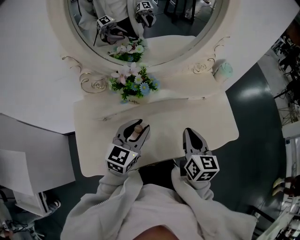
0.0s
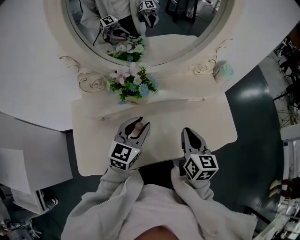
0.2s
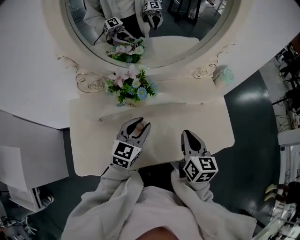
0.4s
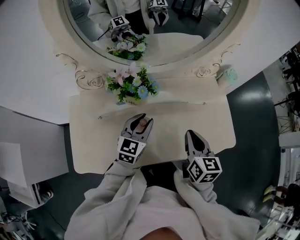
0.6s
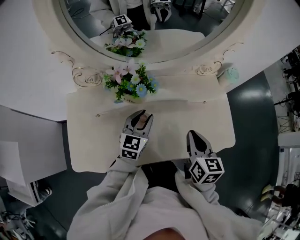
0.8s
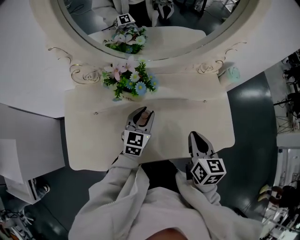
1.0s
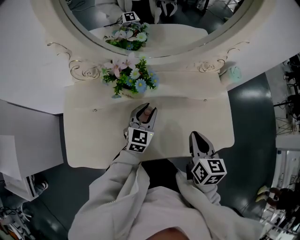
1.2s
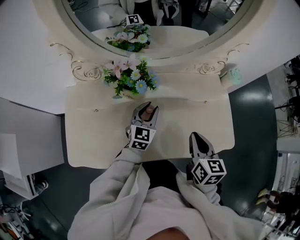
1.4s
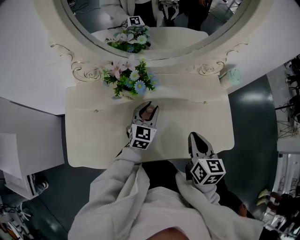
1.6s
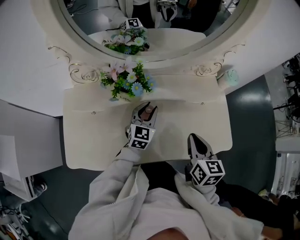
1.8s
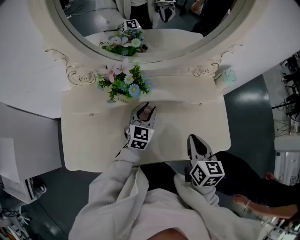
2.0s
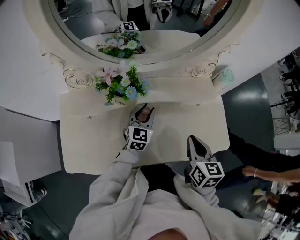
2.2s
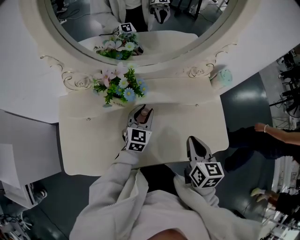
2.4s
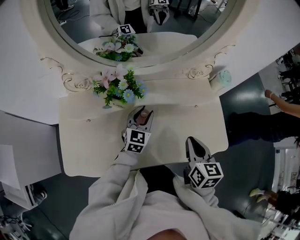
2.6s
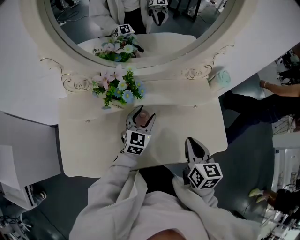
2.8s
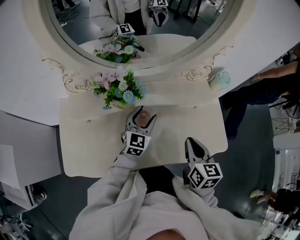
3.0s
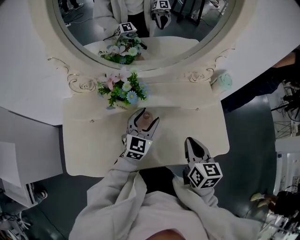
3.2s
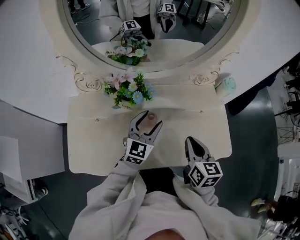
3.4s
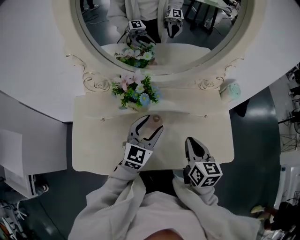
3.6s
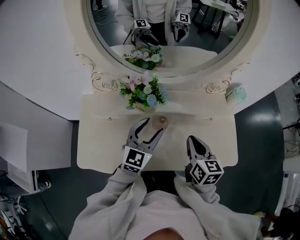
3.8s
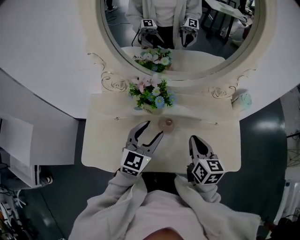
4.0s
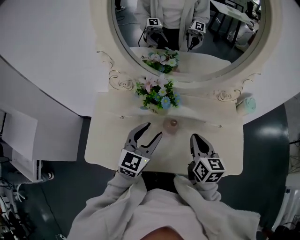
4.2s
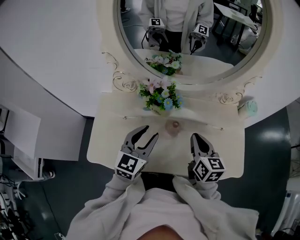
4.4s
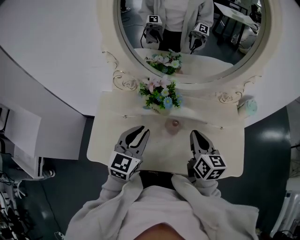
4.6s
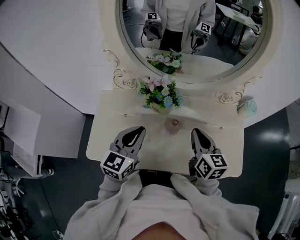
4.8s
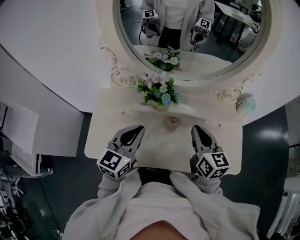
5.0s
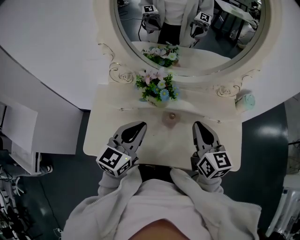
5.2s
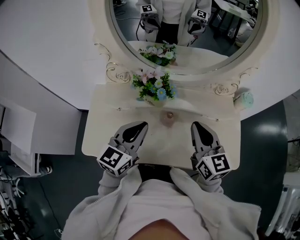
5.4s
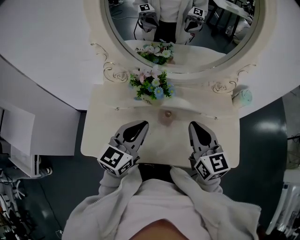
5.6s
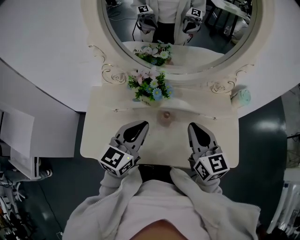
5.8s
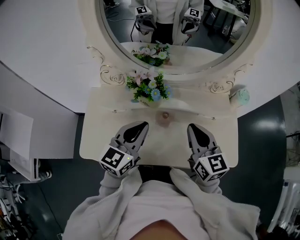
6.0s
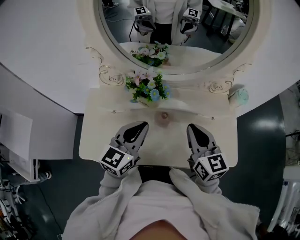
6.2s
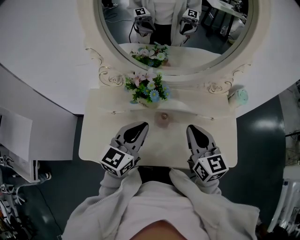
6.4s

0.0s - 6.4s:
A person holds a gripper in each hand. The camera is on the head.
0.0s - 1.6s: The left gripper is displaced downward, forward and to the right by some 15 cm; the right gripper is displaced to the right by some 5 cm.
1.6s - 3.2s: The left gripper opens up.
3.2s - 4.8s: The left gripper goes some 20 cm to the left, upward and backward, and closes up; the right gripper goes some 10 cm to the left and forward.
4.8s - 6.4s: The left gripper moves to the right, some 5 cm.

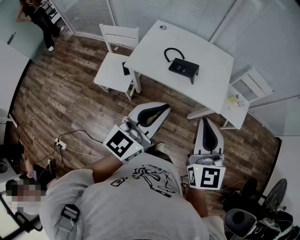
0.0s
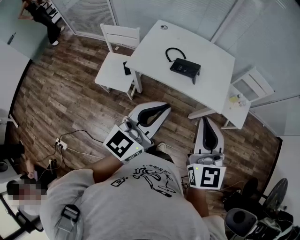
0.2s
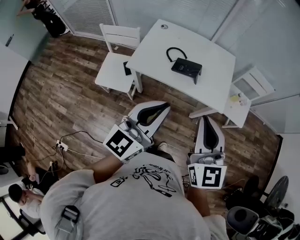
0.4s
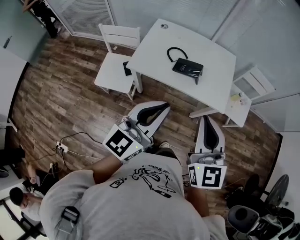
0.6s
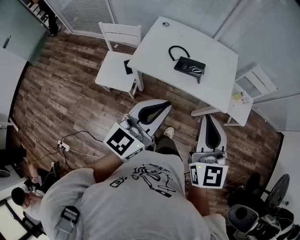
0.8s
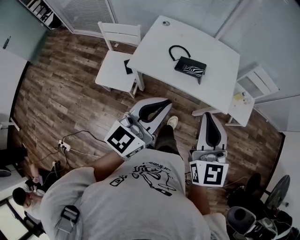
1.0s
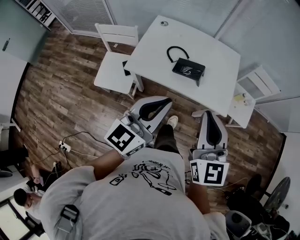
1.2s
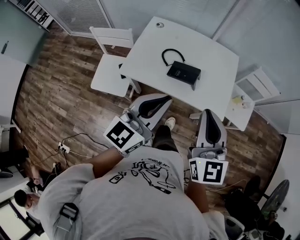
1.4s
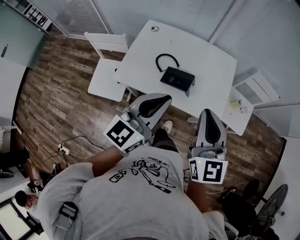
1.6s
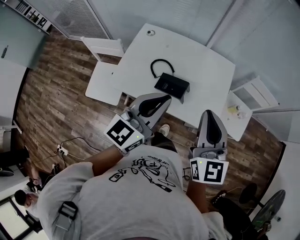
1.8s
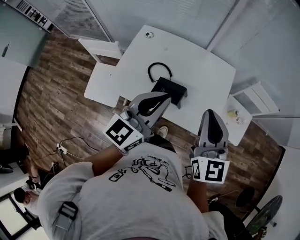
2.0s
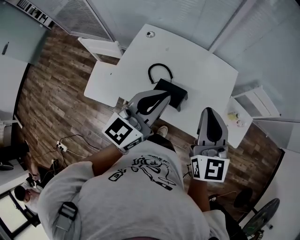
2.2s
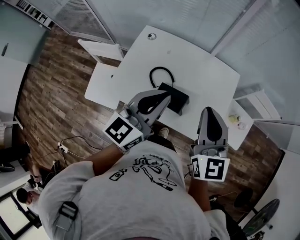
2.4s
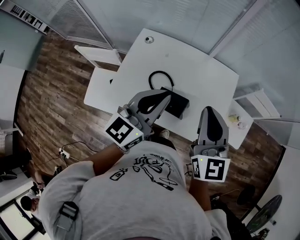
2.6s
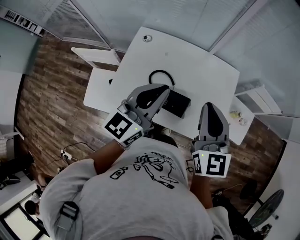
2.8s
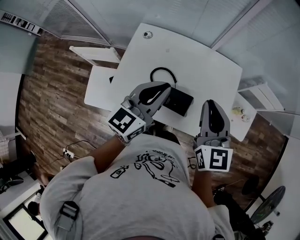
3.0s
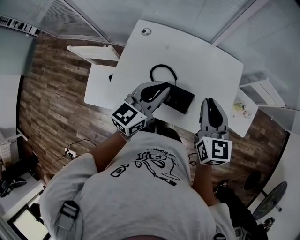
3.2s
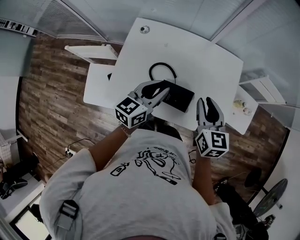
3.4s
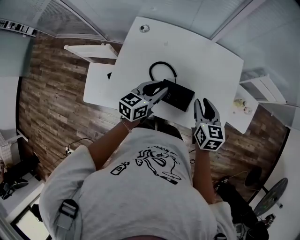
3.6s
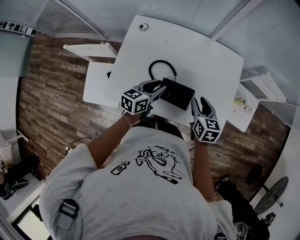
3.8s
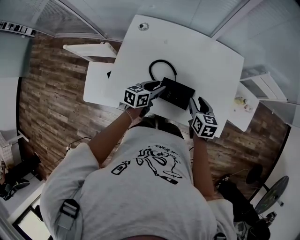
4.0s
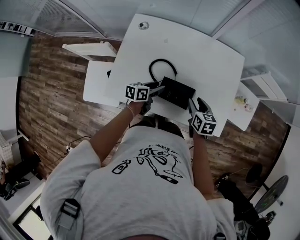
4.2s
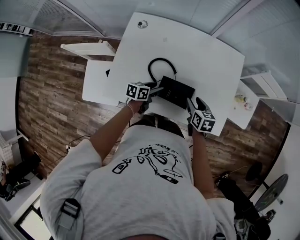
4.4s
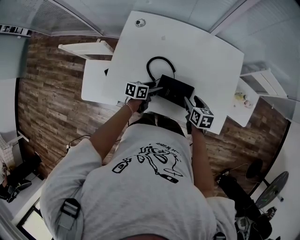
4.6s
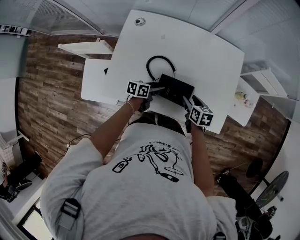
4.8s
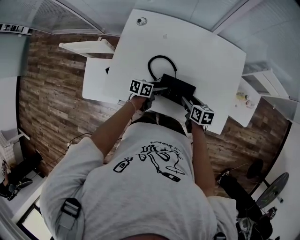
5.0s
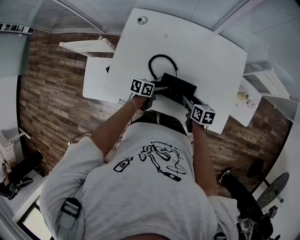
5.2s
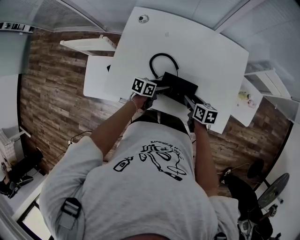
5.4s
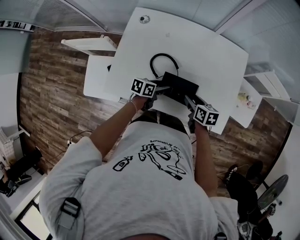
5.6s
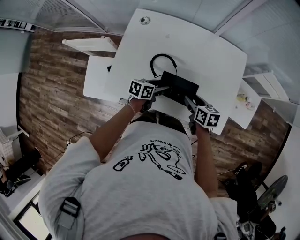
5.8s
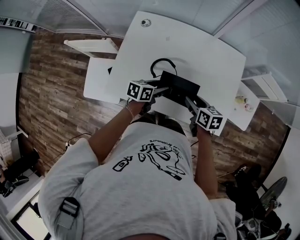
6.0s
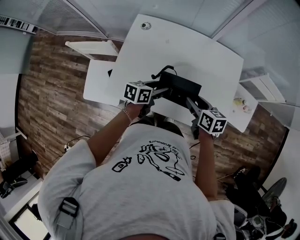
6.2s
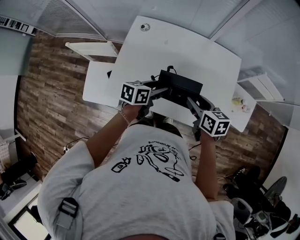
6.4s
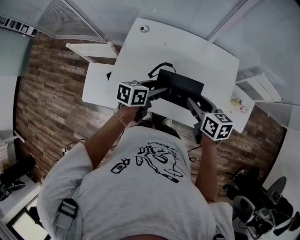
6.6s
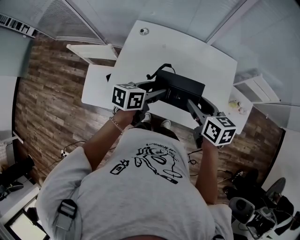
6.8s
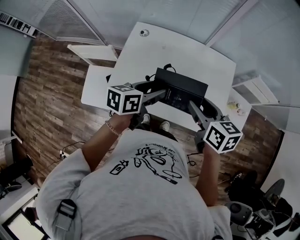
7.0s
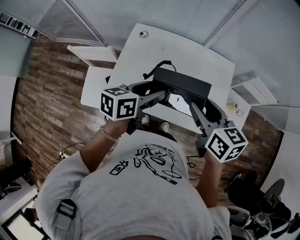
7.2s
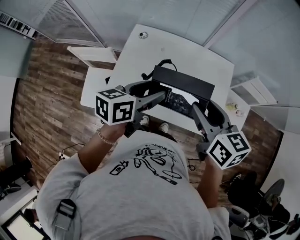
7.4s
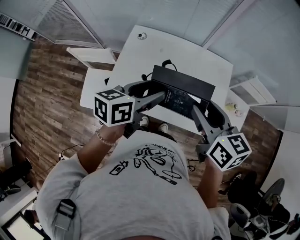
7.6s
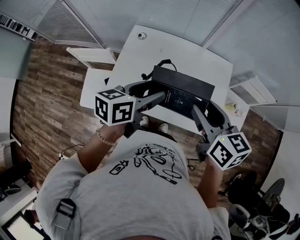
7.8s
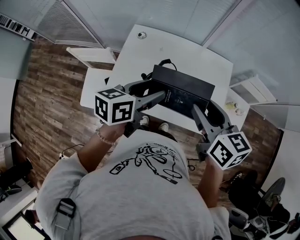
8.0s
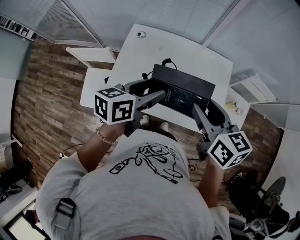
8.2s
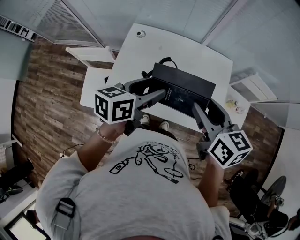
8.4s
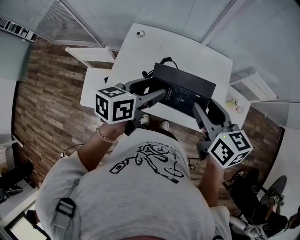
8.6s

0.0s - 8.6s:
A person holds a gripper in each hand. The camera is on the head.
0.0s - 1.4s: The grippers both shift forward by about 15 cm.
1.4s - 2.8s: Both grippers move forward, roughly 25 cm.
2.8s - 4.4s: Both grippers move downward, some 40 cm. The right gripper tips its fingers downward by about 40 degrees, and opens up, while the left gripper angles its fingers downward, by some 40 degrees, and opens.
4.4s - 5.8s: There are only small adjustments of the grippers.
5.8s - 7.2s: Both grippers move upward, about 30 cm. The right gripper swivels some 20 degrees.
7.2s - 8.6s: The grippers move only a little.

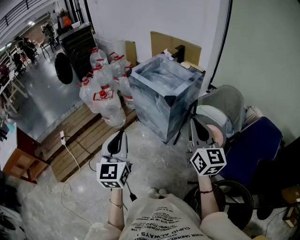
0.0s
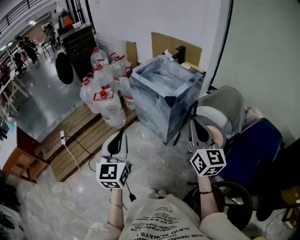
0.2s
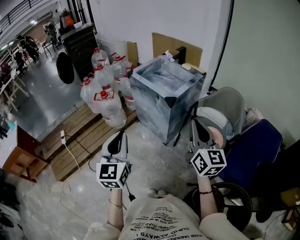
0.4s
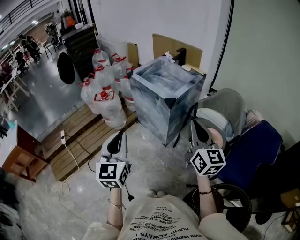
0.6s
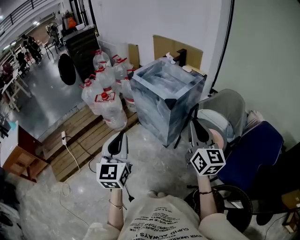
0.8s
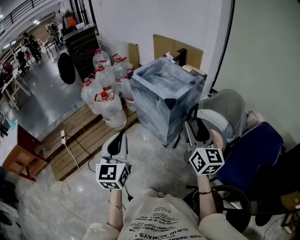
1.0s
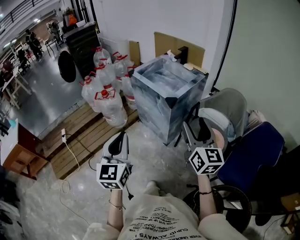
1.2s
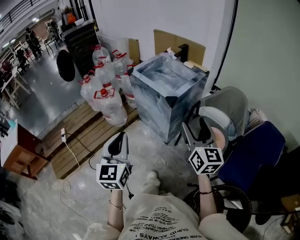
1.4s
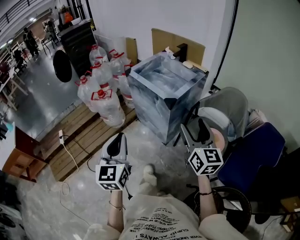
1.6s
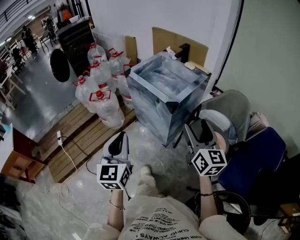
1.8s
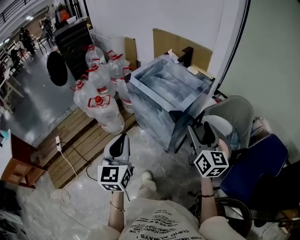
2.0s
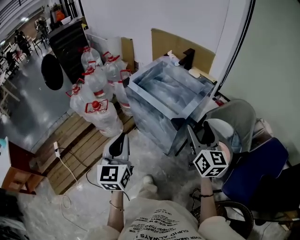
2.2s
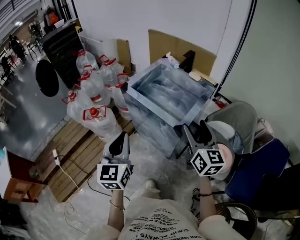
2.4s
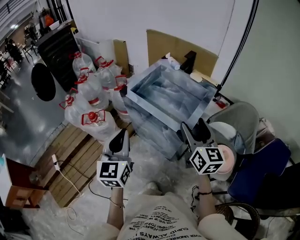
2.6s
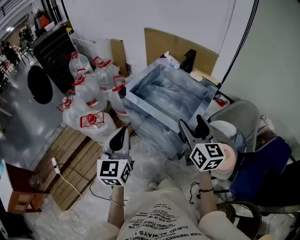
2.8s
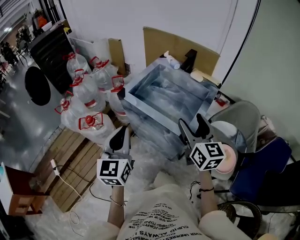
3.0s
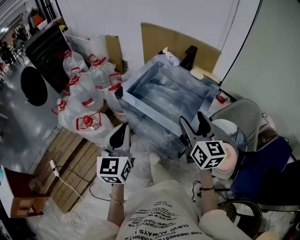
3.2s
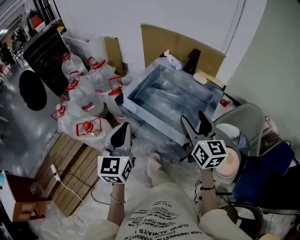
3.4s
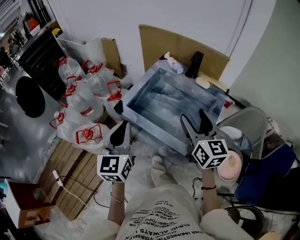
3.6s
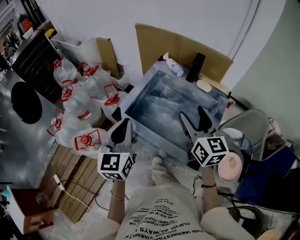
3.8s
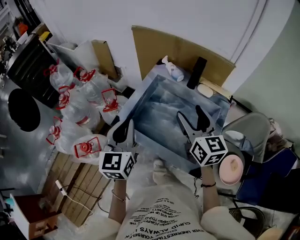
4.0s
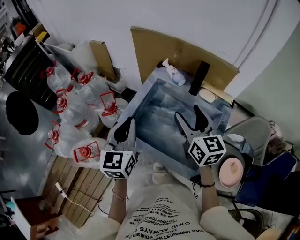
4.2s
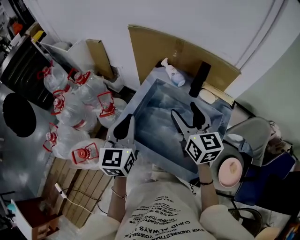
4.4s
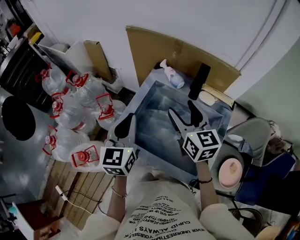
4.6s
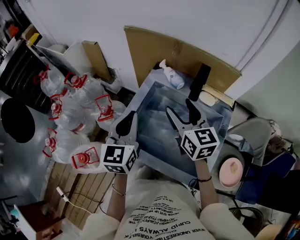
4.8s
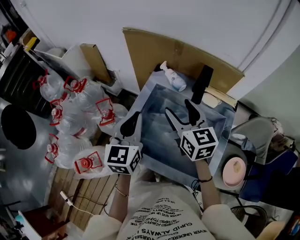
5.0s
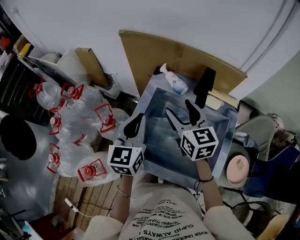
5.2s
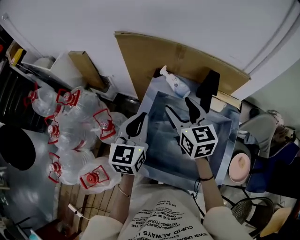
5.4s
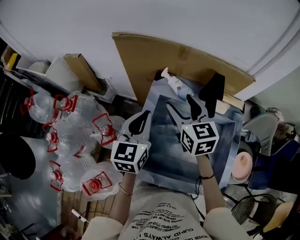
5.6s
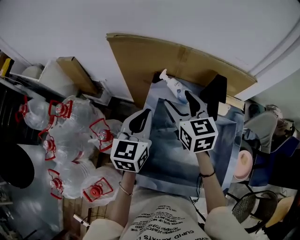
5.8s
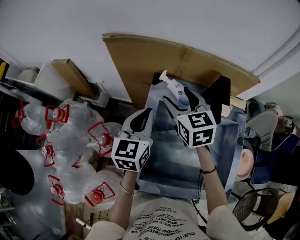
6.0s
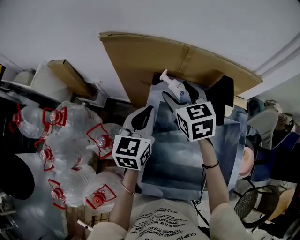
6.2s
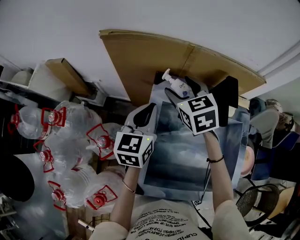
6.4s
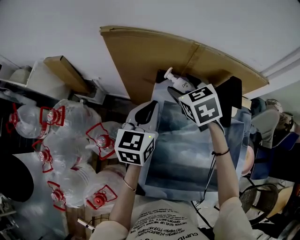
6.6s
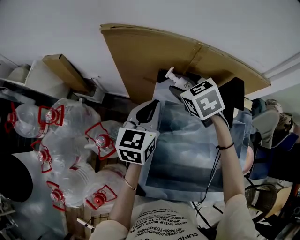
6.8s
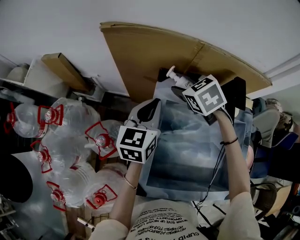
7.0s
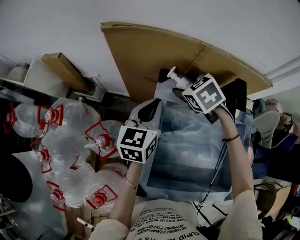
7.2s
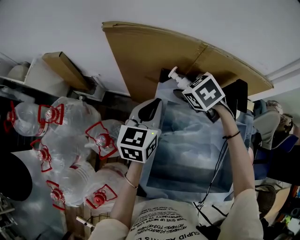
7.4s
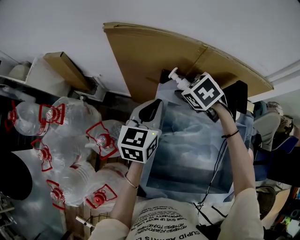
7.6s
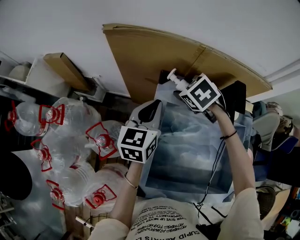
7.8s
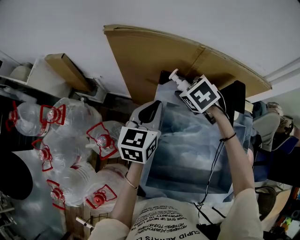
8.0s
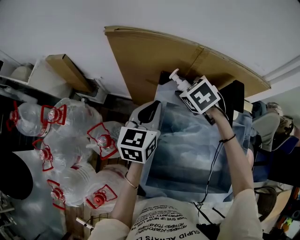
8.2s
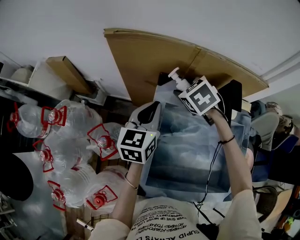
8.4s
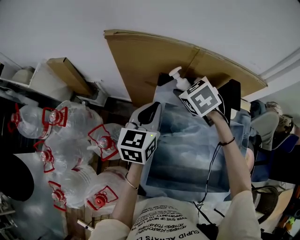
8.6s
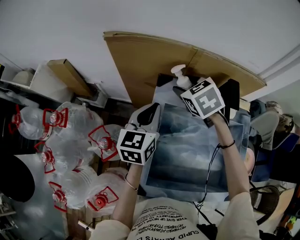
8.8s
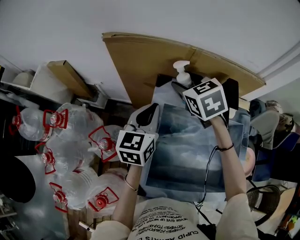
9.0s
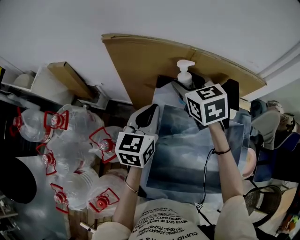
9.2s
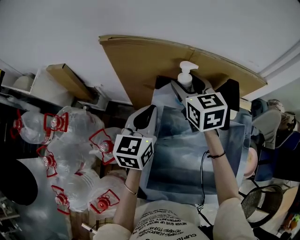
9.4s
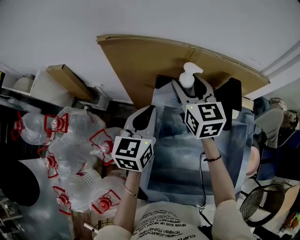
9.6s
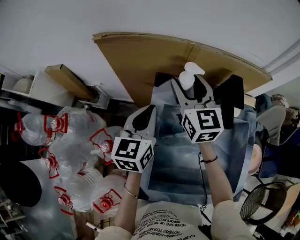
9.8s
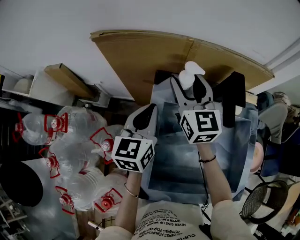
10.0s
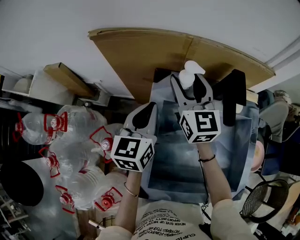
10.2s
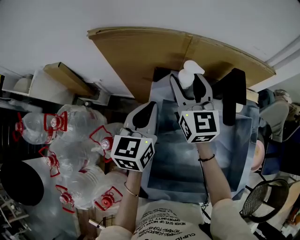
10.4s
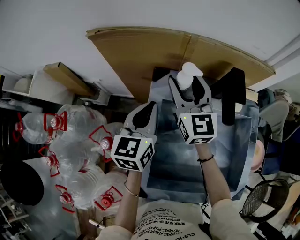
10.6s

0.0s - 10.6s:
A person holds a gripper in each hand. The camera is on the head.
0.0s - 1.6s: The left gripper ends up about 5 cm from where it was. Meanwhile the right gripper is displaced forward by approximately 5 cm, and opens.
1.6s - 3.0s: The grippers both shift forward by approximately 30 cm.
3.0s - 4.6s: The grippers both shift forward by some 30 cm.
4.6s - 6.0s: The grippers both shift forward by some 20 cm. The left gripper swivels roughly 20 degrees. Meanwhile the right gripper changes its angle by about 20 degrees.
6.0s - 7.6s: The right gripper is displaced downward and forward by roughly 10 cm, and points its fingers approximately 40 degrees further downward, while the left gripper shifts approximately 5 cm forward.
7.6s - 9.0s: The right gripper travels upward by about 10 cm, and changes its angle by approximately 30 degrees.
9.0s - 10.6s: The right gripper tilts its fingers roughly 40 degrees upward.
